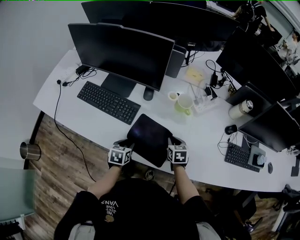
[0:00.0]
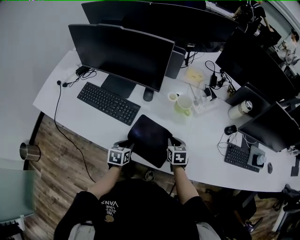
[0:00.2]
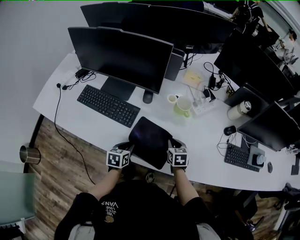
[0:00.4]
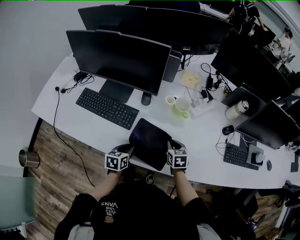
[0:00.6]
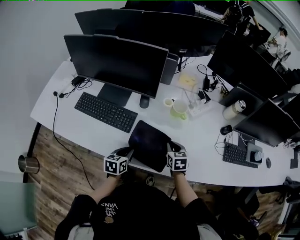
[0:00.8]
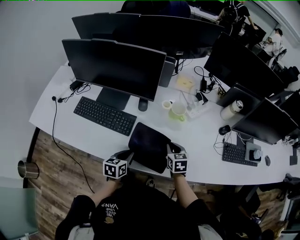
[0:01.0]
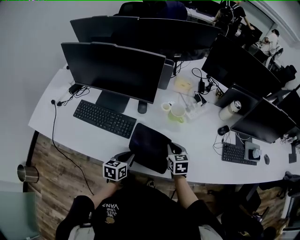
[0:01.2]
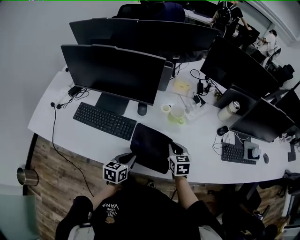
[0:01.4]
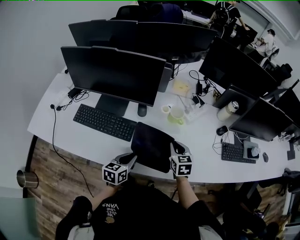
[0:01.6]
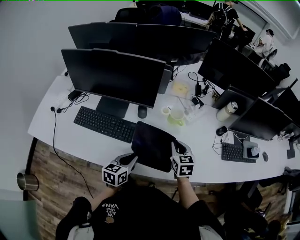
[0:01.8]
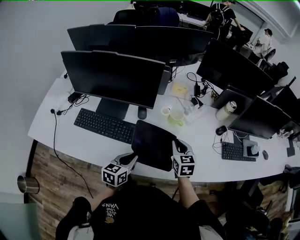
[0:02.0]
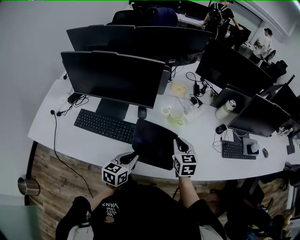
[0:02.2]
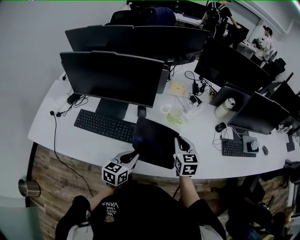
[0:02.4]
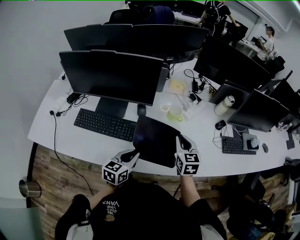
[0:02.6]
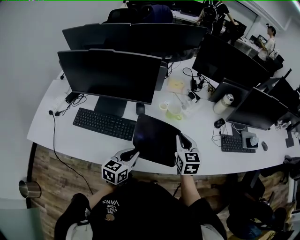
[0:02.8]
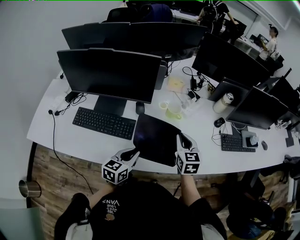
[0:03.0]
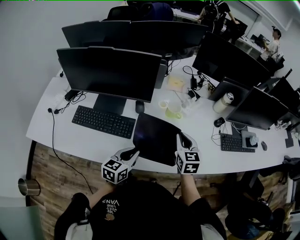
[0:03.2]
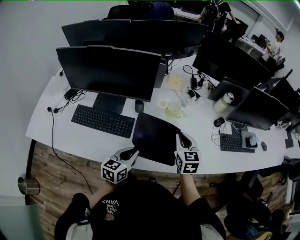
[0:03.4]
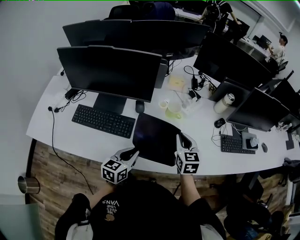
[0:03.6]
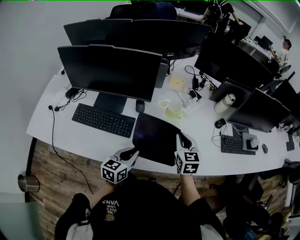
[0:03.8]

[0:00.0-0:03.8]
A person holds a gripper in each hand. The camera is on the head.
0.0 to 1.2 s: The two grippers go approximately 10 cm upward.
1.2 to 2.6 s: Both grippers travel together upward, approximately 10 cm.
2.6 to 3.8 s: There are only small adjustments of the grippers.

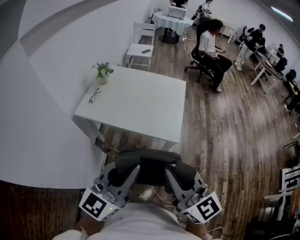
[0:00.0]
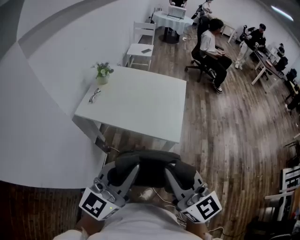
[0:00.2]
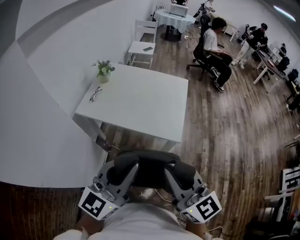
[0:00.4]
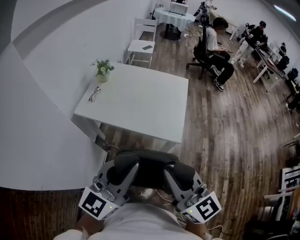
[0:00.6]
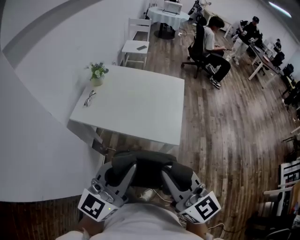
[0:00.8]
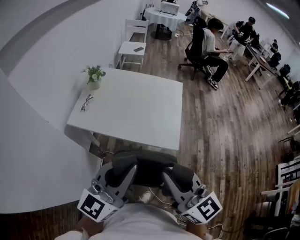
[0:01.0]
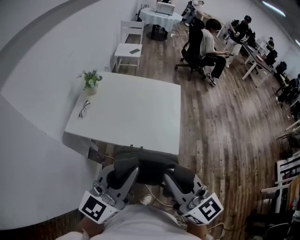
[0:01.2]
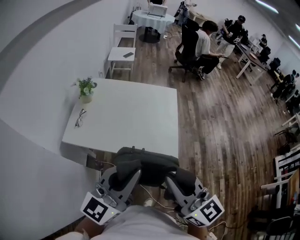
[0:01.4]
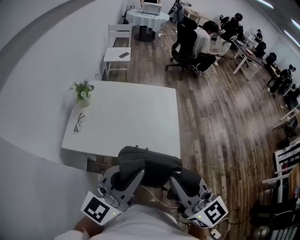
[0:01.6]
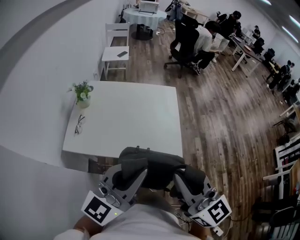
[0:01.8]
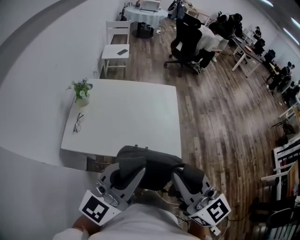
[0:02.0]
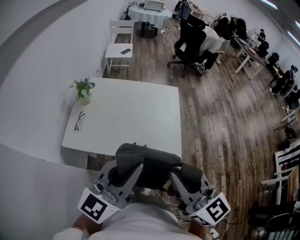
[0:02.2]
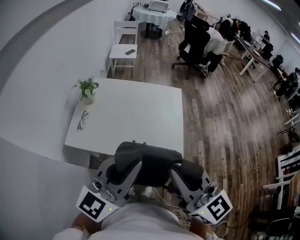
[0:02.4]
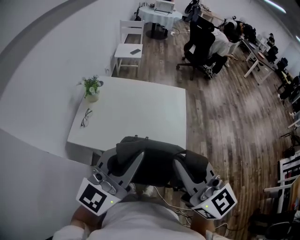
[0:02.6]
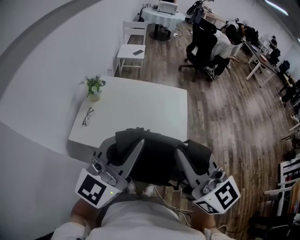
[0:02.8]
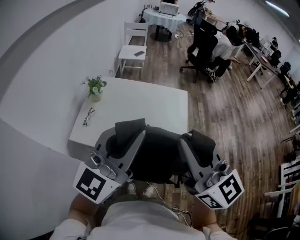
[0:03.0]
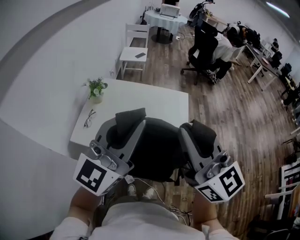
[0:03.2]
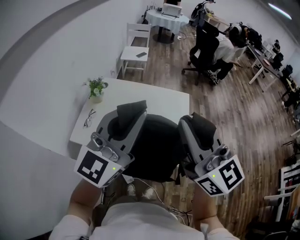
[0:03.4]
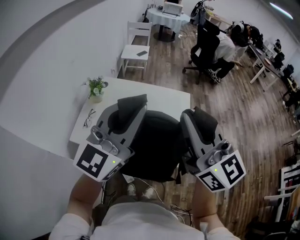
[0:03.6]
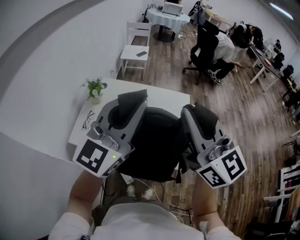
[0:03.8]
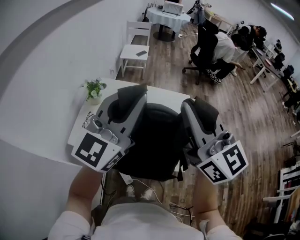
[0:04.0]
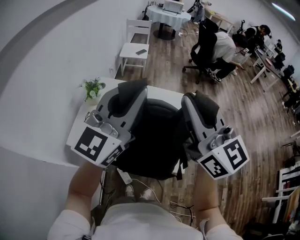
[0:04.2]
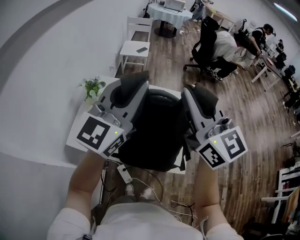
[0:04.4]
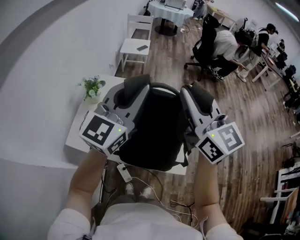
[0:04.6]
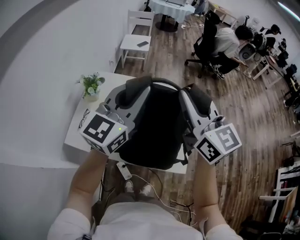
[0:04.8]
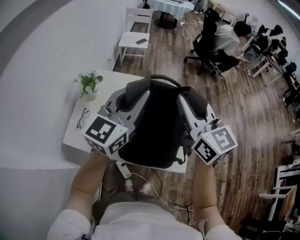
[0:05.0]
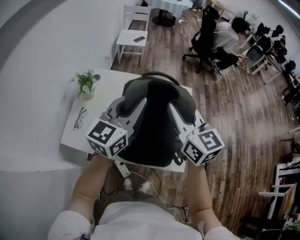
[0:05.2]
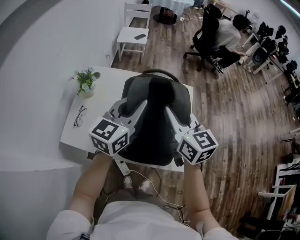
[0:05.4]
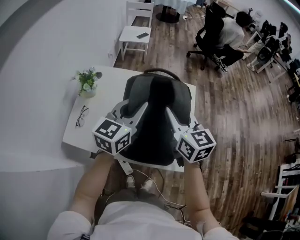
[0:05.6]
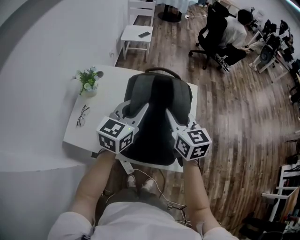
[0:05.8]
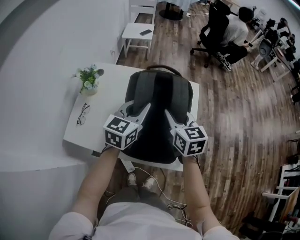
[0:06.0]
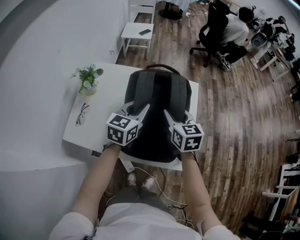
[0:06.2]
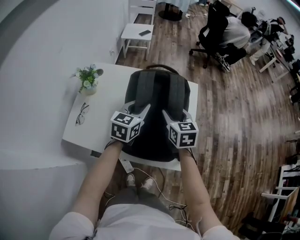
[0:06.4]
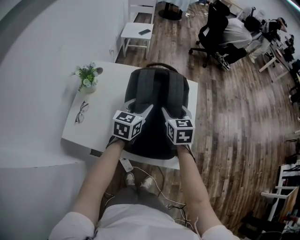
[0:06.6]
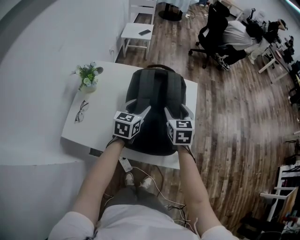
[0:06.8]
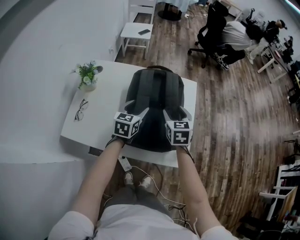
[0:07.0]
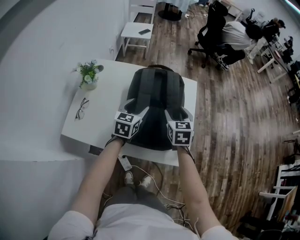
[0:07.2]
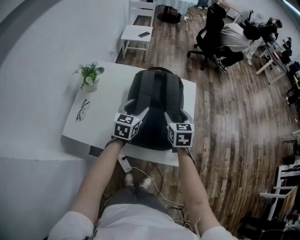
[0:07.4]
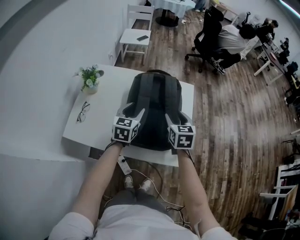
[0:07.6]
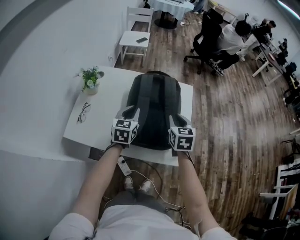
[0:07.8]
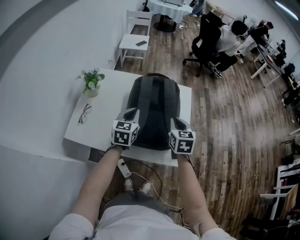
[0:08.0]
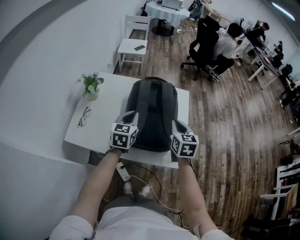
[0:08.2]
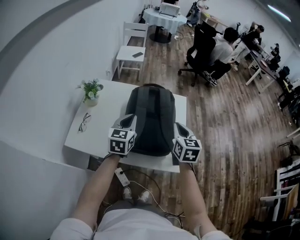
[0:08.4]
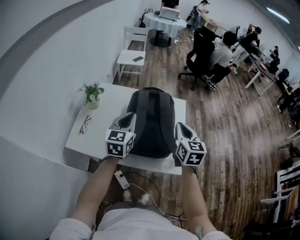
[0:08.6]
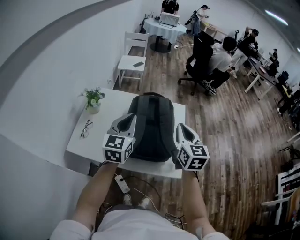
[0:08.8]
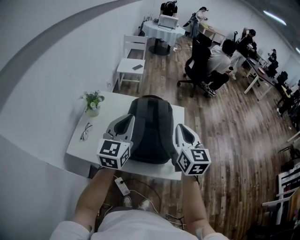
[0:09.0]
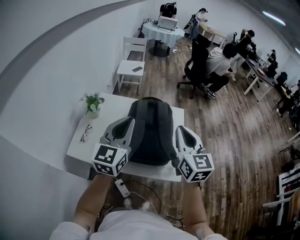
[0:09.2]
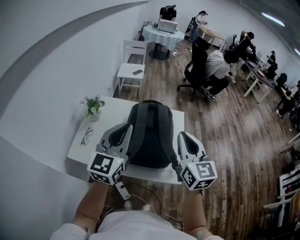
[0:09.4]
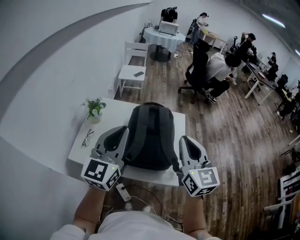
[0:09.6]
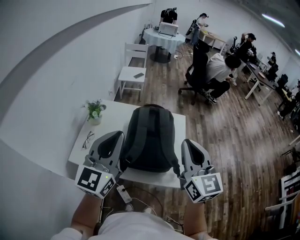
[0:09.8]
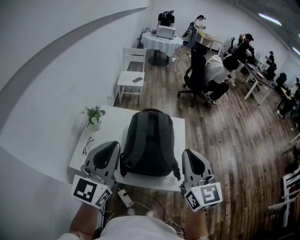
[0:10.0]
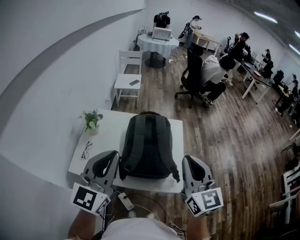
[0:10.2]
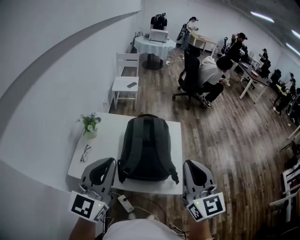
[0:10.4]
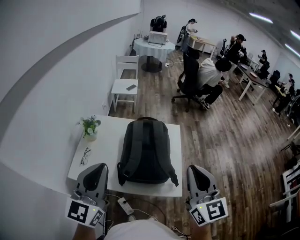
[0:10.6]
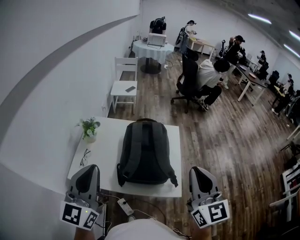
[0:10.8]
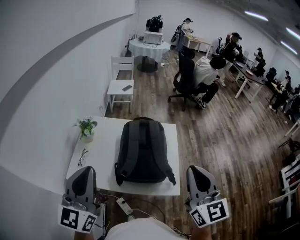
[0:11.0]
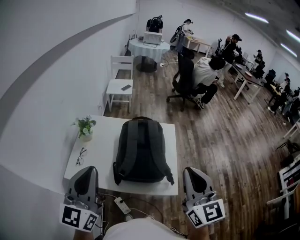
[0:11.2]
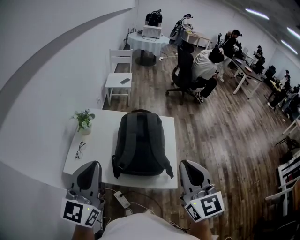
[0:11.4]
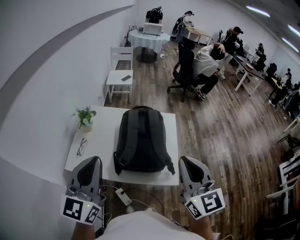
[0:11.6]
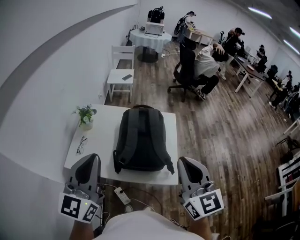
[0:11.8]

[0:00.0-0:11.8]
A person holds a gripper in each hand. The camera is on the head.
0.0 to 1.4 s: Both grippers move forward, approximately 20 cm.
1.4 to 3.0 s: The two grippers go approximately 15 cm forward and upward.
3.0 to 4.4 s: Both grippers travel together forward, about 20 cm.
4.4 to 6.0 s: Both grippers travel together downward, roughly 30 cm. The left gripper turns by some 30 degrees, while the right gripper tilts its fingers roughly 30 degrees downward.
6.0 to 7.4 s: The grippers both shift downward by approximately 10 cm. The right gripper opens its fingers. The left gripper opens.
7.4 to 8.8 s: The two grippers go about 20 cm upward and backward. The right gripper changes its angle by some 20 degrees, and closes up. The left gripper closes its fingers.
8.8 to 10.4 s: The grippers both shift upward and backward by some 20 cm.
10.4 to 11.8 s: The grippers stay close to where they were, moving slightly.

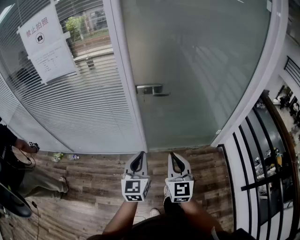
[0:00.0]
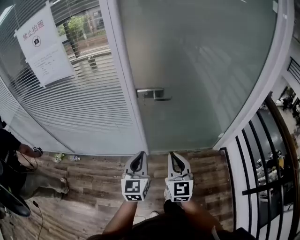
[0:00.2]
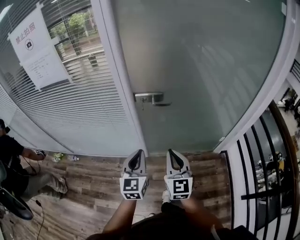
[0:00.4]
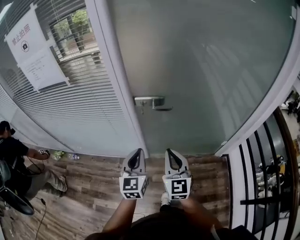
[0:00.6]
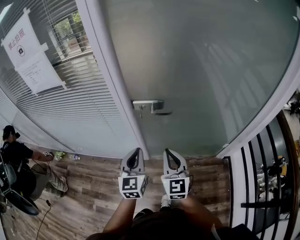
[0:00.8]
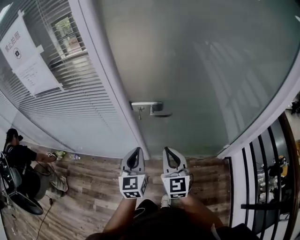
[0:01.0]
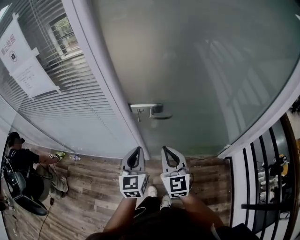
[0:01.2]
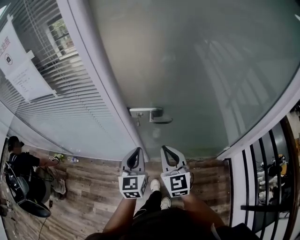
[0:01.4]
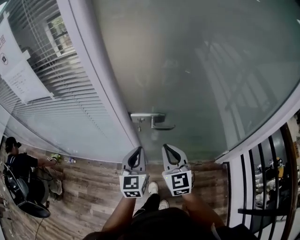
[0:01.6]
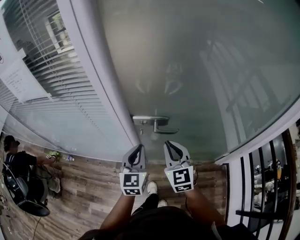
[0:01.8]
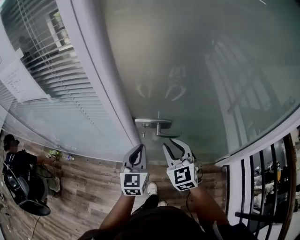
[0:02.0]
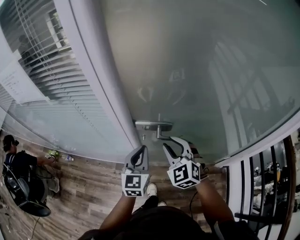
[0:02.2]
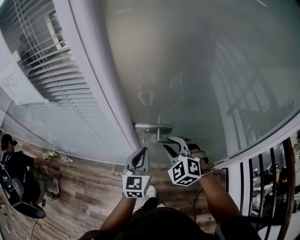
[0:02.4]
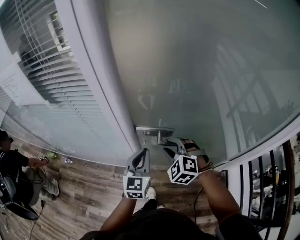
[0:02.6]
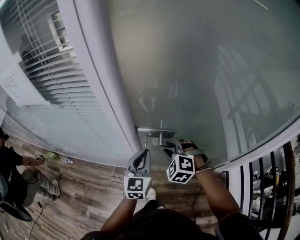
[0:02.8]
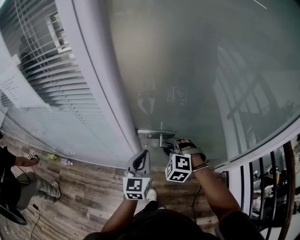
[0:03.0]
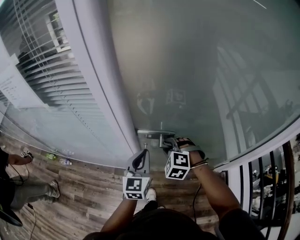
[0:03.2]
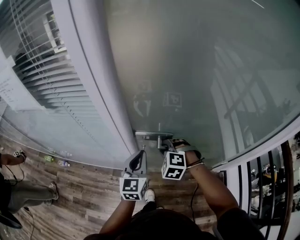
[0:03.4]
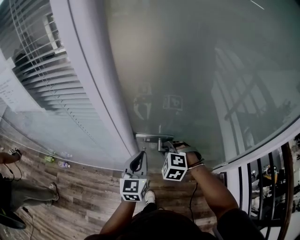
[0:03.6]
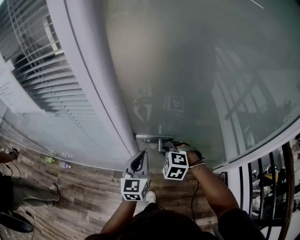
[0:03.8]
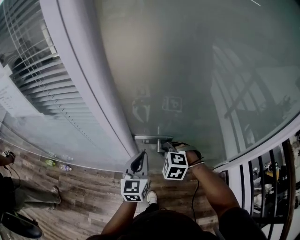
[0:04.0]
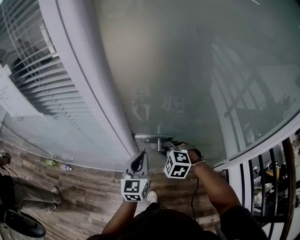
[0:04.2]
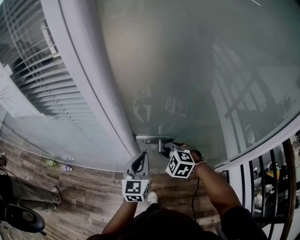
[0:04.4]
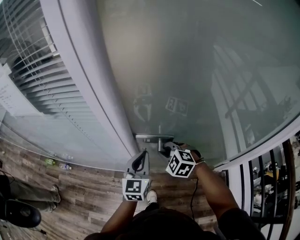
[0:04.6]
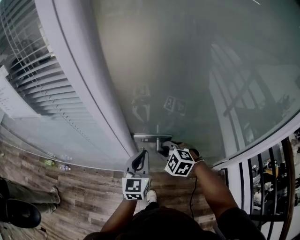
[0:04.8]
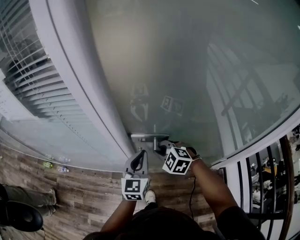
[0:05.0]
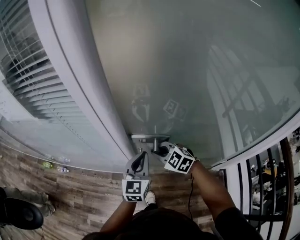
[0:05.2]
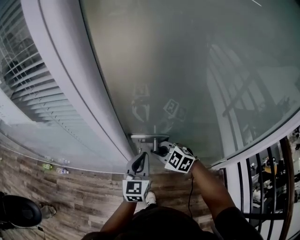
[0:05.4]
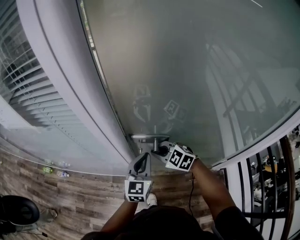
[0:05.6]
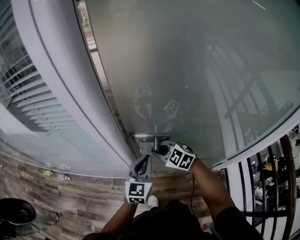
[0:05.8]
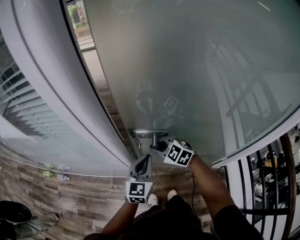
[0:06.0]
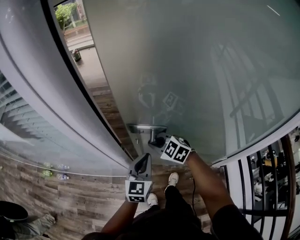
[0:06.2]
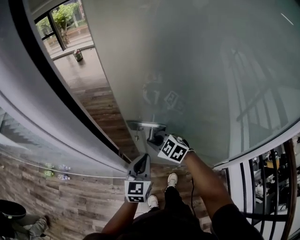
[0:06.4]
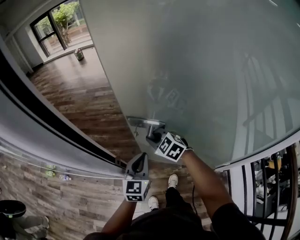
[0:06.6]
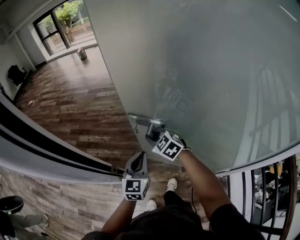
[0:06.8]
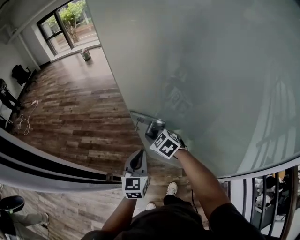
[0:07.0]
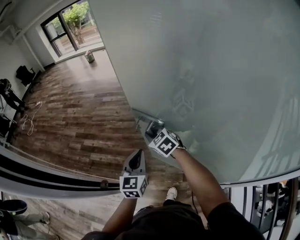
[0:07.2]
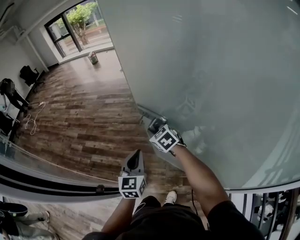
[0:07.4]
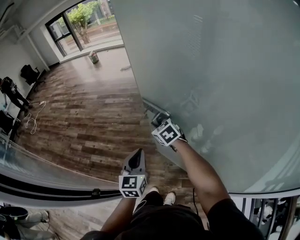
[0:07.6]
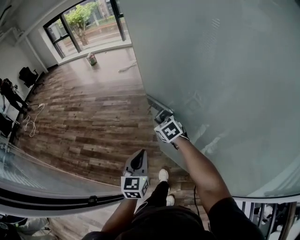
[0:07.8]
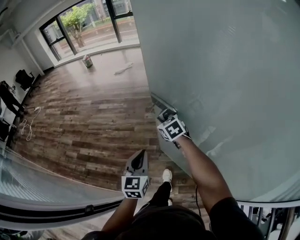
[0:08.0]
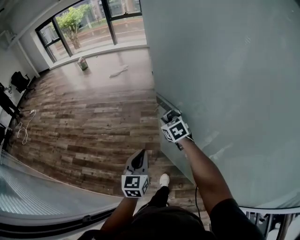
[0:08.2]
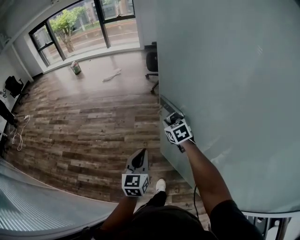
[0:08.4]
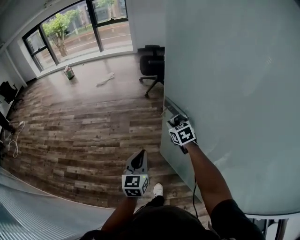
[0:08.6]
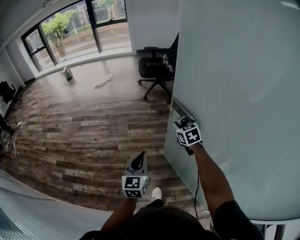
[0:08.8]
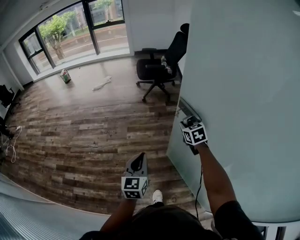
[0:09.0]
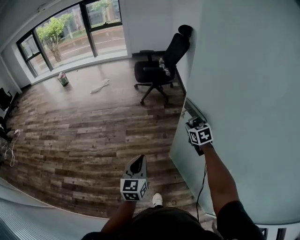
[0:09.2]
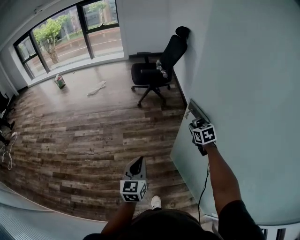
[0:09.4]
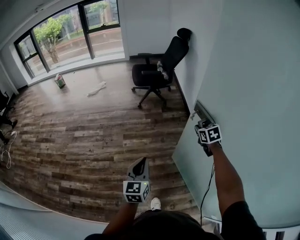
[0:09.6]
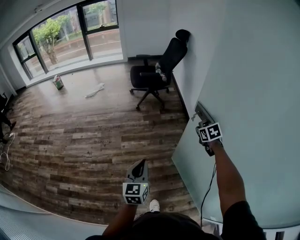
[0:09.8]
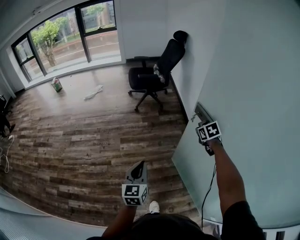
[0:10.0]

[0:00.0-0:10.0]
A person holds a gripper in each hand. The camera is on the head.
0.0 to 1.4 s: The grippers both shift forward by about 25 cm.
1.4 to 2.8 s: The right gripper is displaced forward and downward by about 15 cm, tilts its fingers approximately 40 degrees downward, and opens its fingers. The left gripper heads forward, covering approximately 10 cm.
2.8 to 4.2 s: The right gripper closes up.
4.2 to 5.8 s: The right gripper shifts about 5 cm forward, and swivels about 30 degrees; the left gripper shifts by approximately 5 cm.
5.8 to 7.2 s: The two grippers go roughly 30 cm forward and to the right.
7.2 to 8.6 s: The left gripper travels forward and to the right by some 30 cm, while the right gripper goes about 40 cm to the right and forward, and changes its angle by some 30 degrees.
8.6 to 10.0 s: The right gripper is displaced to the right and forward by about 30 cm, and changes its angle by some 20 degrees. The left gripper shifts approximately 15 cm forward.
